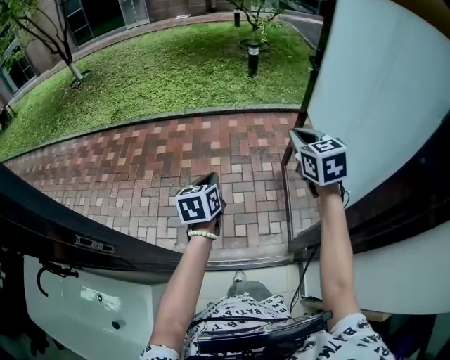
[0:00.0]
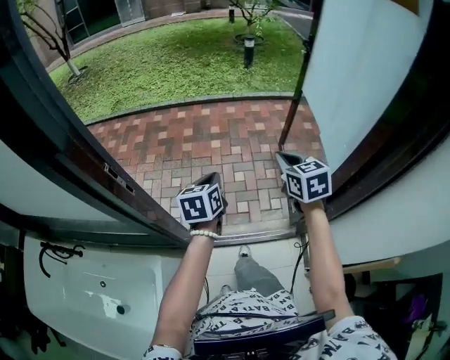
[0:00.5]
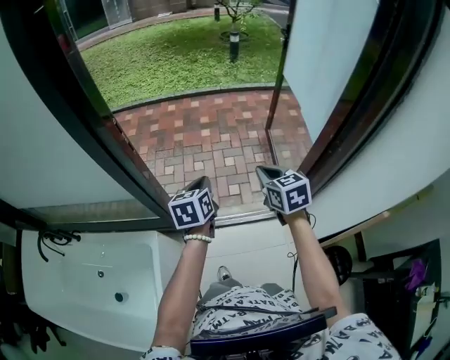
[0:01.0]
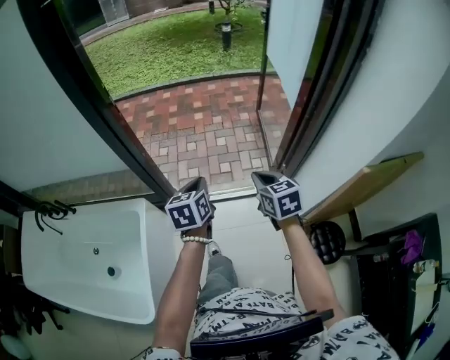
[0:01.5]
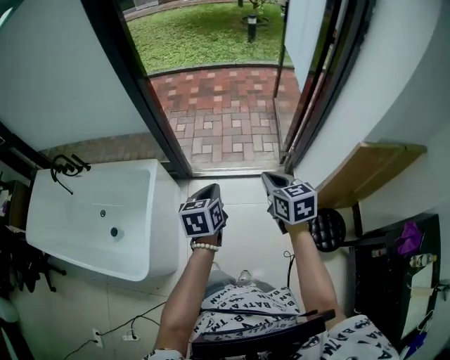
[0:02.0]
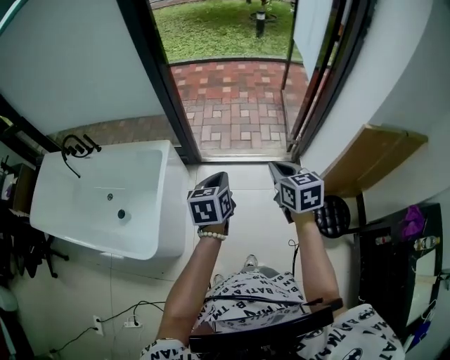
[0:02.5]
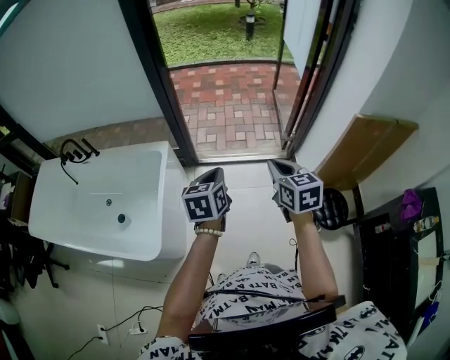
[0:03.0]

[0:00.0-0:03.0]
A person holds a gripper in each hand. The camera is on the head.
0:00.0 to 0:01.5: The two grippers travel together, backward, approximately 50 cm.
0:01.5 to 0:03.0: Both grippers move backward, approximately 25 cm.

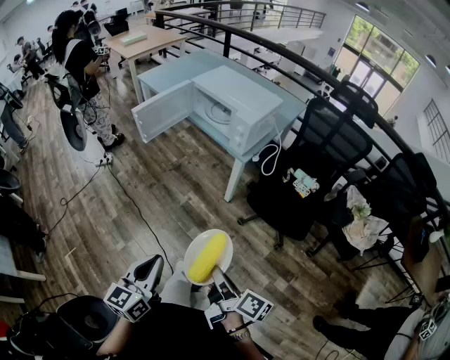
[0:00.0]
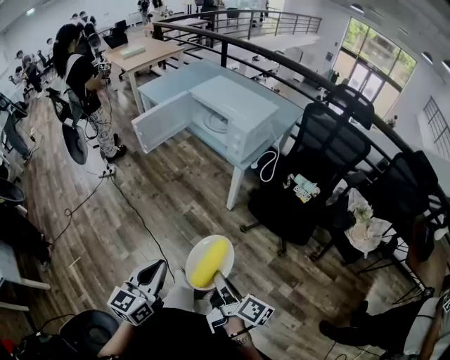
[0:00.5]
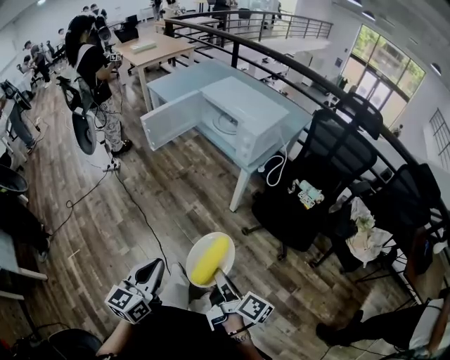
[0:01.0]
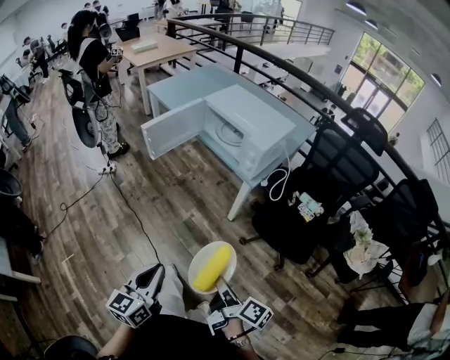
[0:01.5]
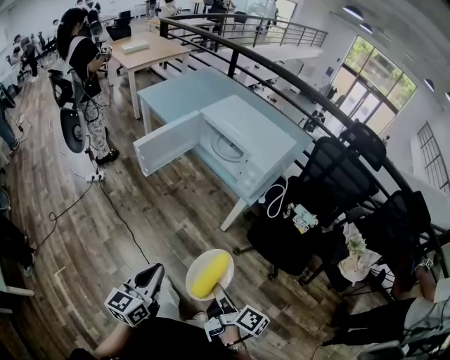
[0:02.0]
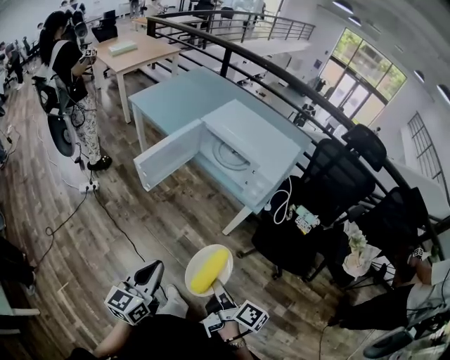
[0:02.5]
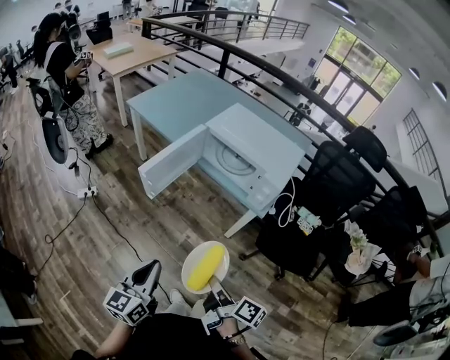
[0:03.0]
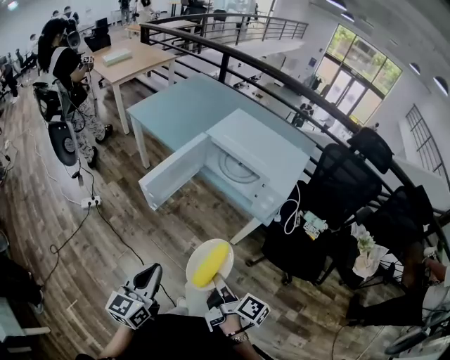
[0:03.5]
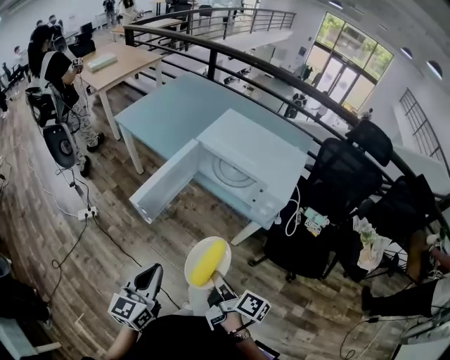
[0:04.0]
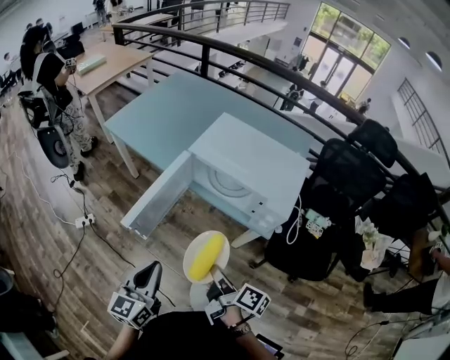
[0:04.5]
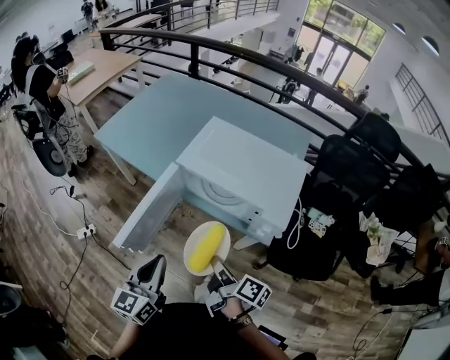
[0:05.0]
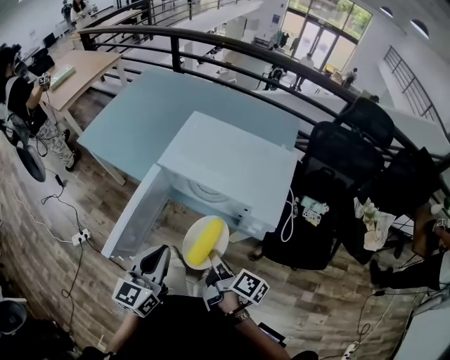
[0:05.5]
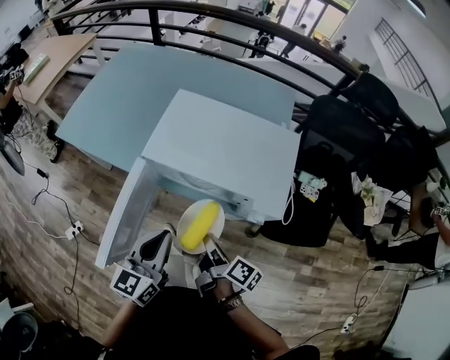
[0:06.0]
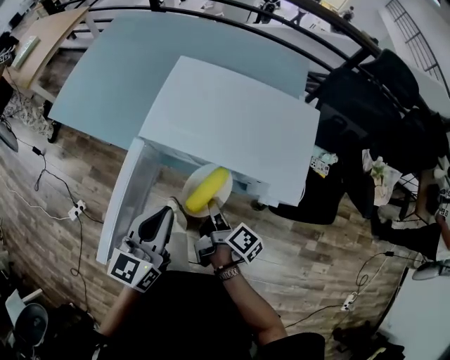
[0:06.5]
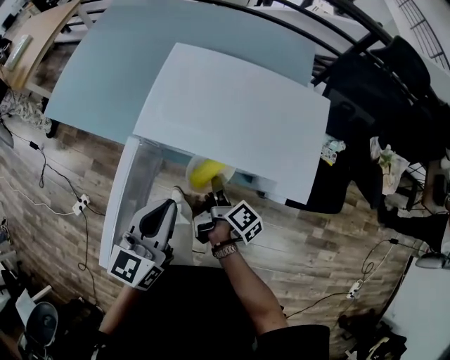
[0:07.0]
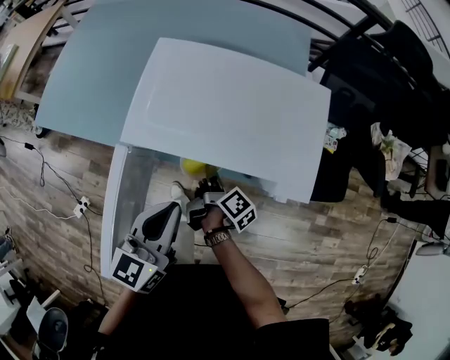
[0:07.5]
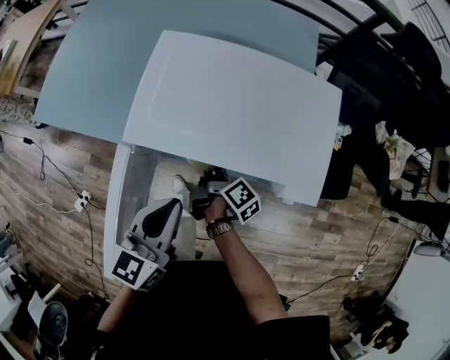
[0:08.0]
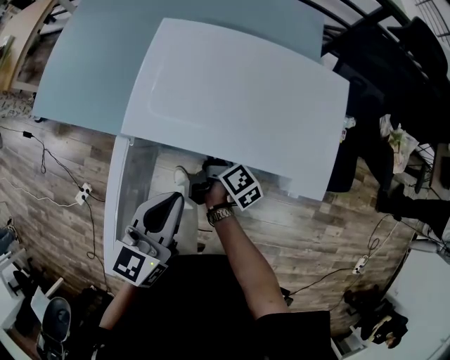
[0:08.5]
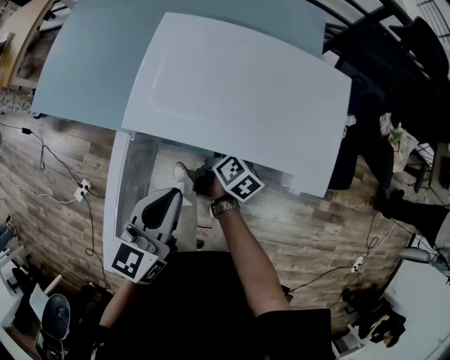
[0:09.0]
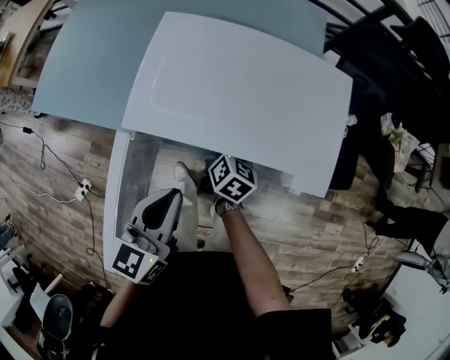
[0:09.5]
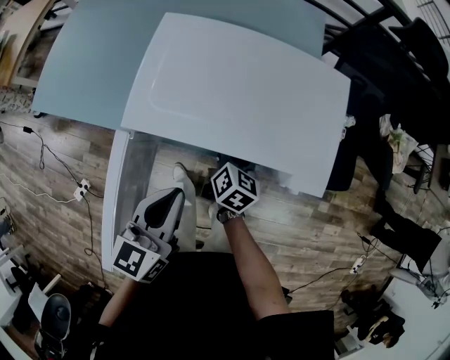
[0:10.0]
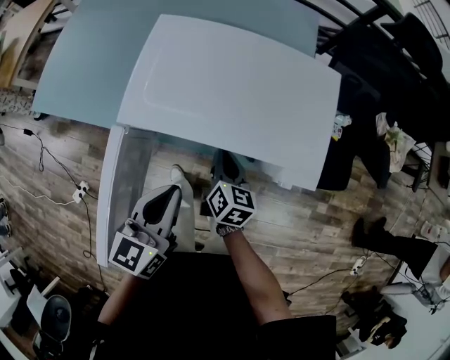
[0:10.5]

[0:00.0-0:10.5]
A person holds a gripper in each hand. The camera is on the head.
0:00.0 to 0:02.0: The grippers both shift forward by about 15 cm.
0:02.0 to 0:04.0: Both grippers travel together forward and to the left, roughly 25 cm.
0:04.0 to 0:06.5: Both grippers travel together forward, about 30 cm. The right gripper changes its angle by about 30 degrees.
0:06.5 to 0:08.5: The left gripper moves forward, some 5 cm, while the right gripper is displaced forward and downward by about 15 cm.
0:08.5 to 0:10.5: The right gripper shifts by about 5 cm, rotates around the line of its fingers by roughly 40 degrees, counterclockwise from behind, and opens and closes again.

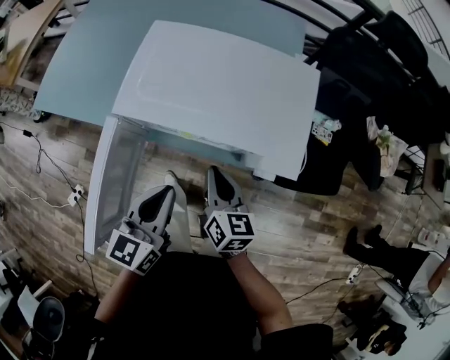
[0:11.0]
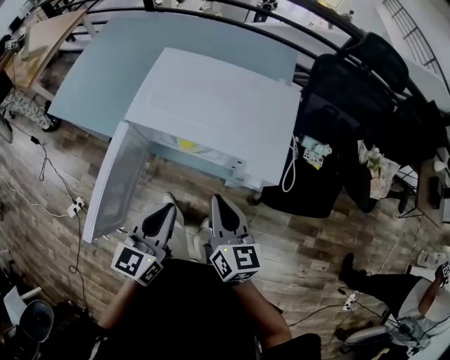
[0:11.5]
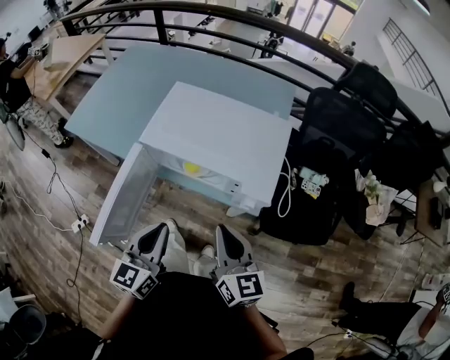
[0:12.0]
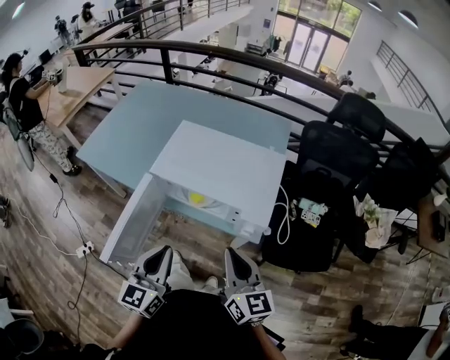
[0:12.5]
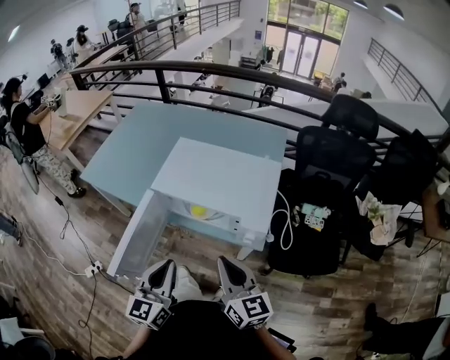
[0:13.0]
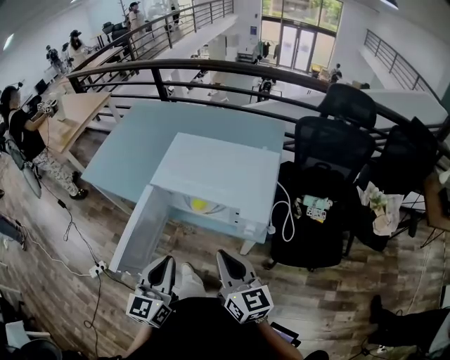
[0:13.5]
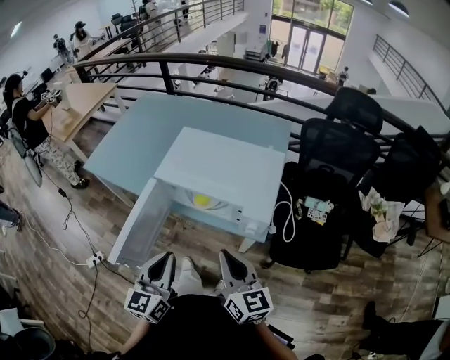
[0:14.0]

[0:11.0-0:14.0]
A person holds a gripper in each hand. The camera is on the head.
0:11.0 to 0:12.5: The right gripper shifts some 20 cm upward, backward and to the right, and changes its angle by some 20 degrees. The left gripper travels backward and upward by about 15 cm.
0:12.5 to 0:14.0: There are only small adjustments of the grippers.

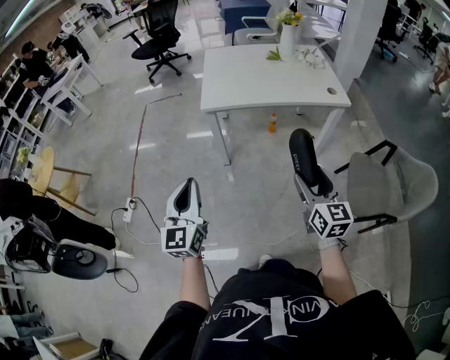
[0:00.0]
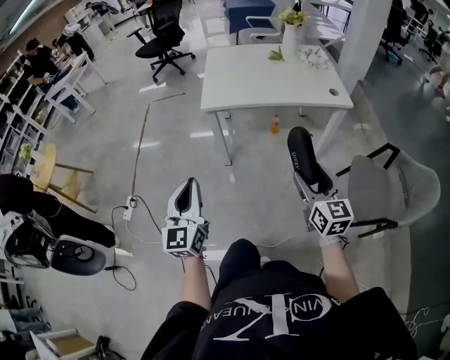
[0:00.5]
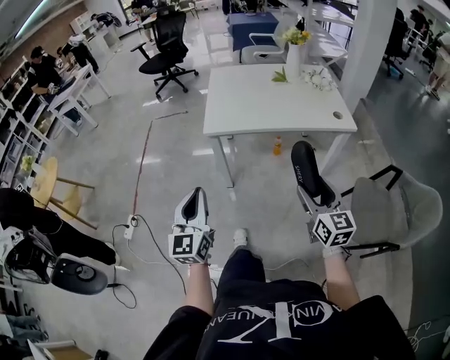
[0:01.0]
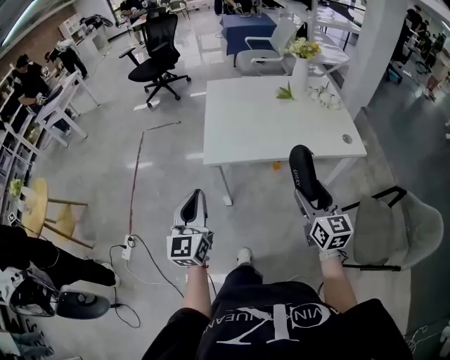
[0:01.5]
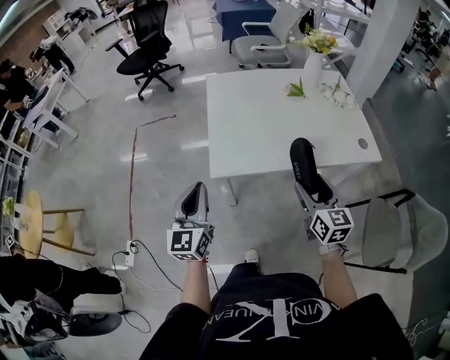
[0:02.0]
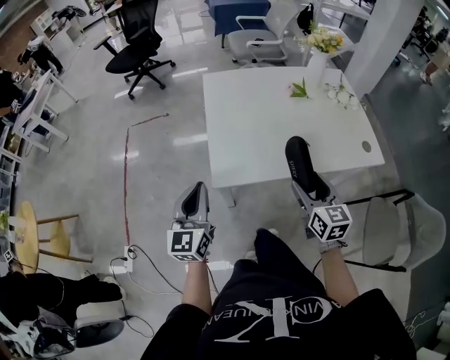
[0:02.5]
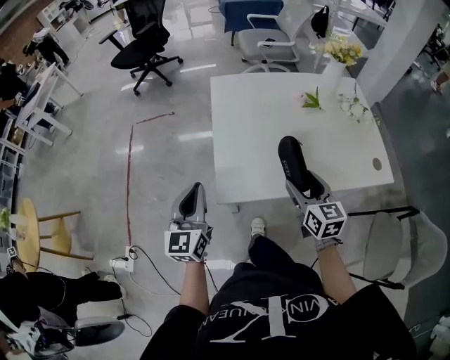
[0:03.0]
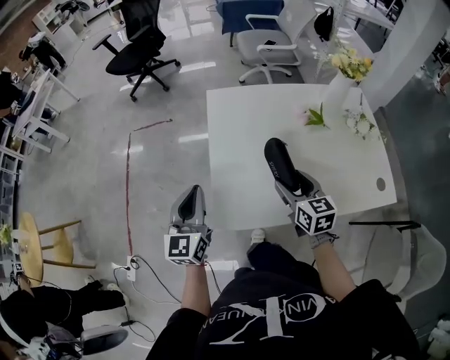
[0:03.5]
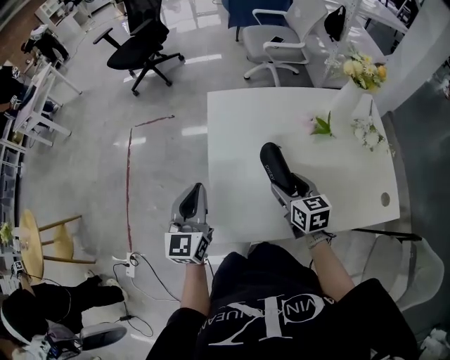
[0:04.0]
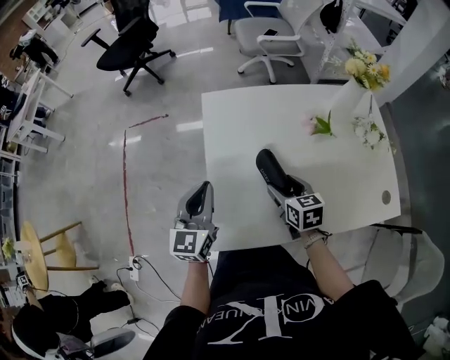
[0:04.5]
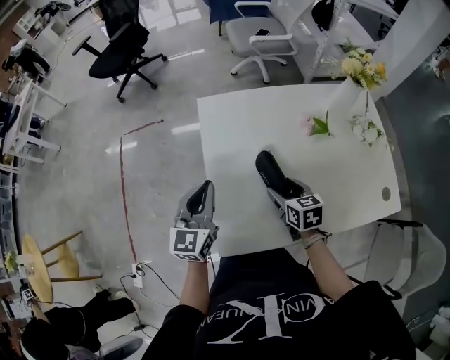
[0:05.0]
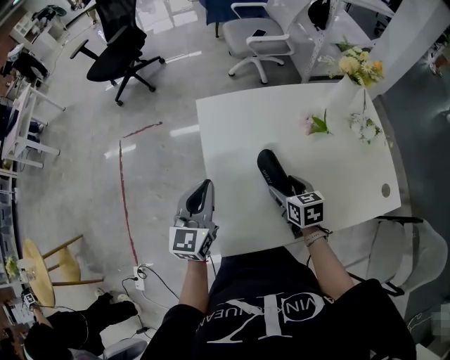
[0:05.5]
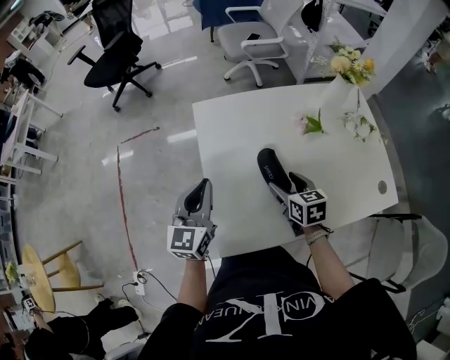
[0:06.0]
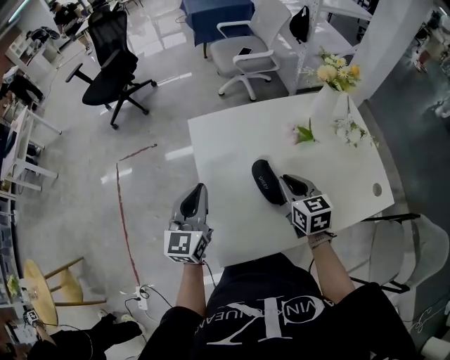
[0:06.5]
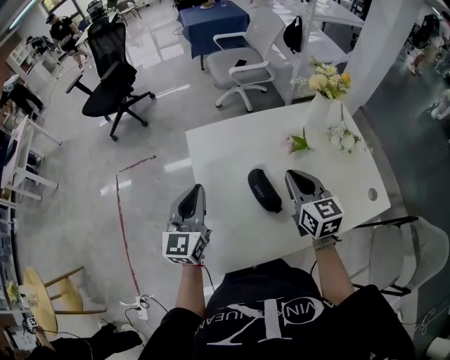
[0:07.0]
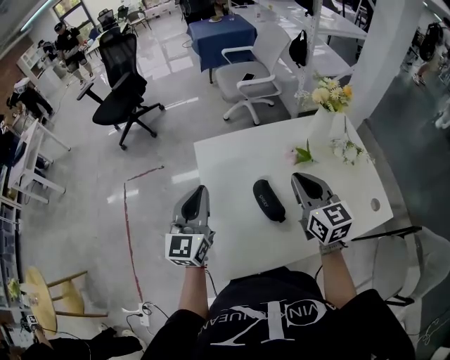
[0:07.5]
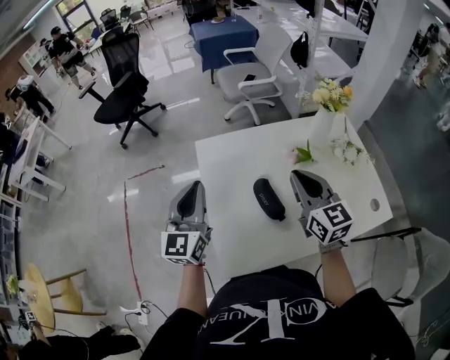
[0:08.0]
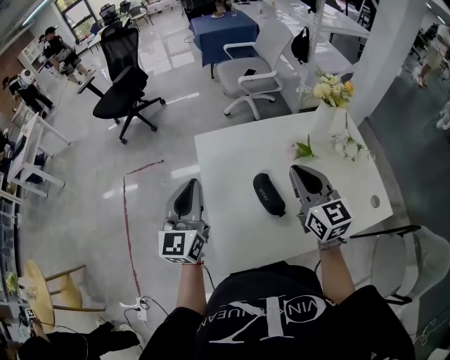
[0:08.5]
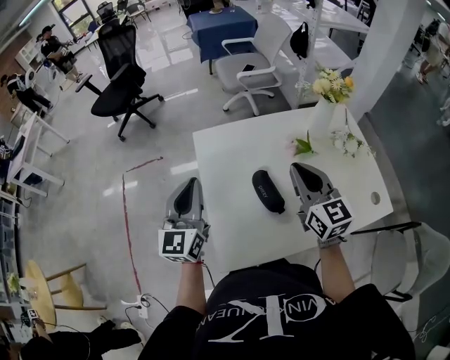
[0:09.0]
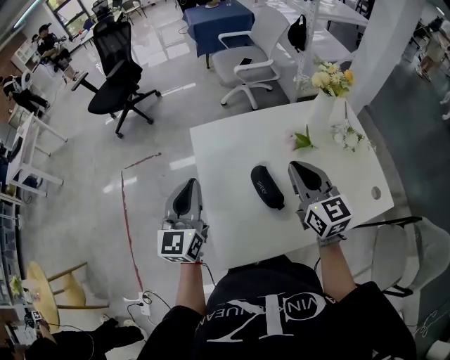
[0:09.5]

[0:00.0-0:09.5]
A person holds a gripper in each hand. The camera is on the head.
0:00.0 to 0:02.0: The two grippers go some 35 cm forward.
0:02.0 to 0:04.0: The grippers both shift forward by some 30 cm. The right gripper rotates about 20 degrees.
0:04.0 to 0:05.5: The left gripper goes roughly 5 cm forward.
0:05.5 to 0:07.5: The right gripper goes roughly 20 cm upward, tips its fingers upward by approximately 30 degrees, and closes its fingers, while the left gripper heads upward, covering roughly 10 cm.
0:07.5 to 0:09.5: The grippers move only a little.
